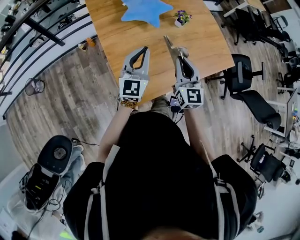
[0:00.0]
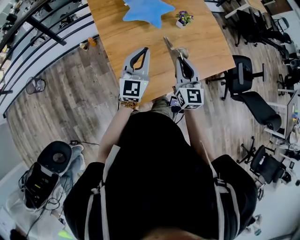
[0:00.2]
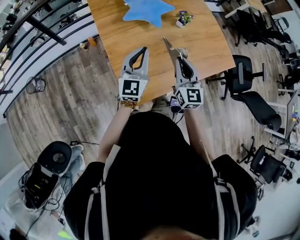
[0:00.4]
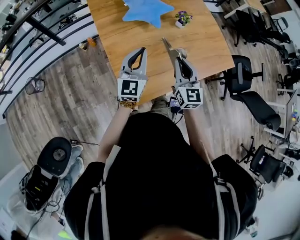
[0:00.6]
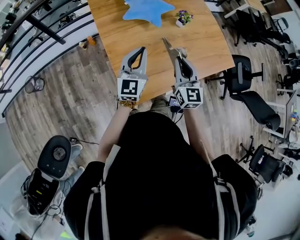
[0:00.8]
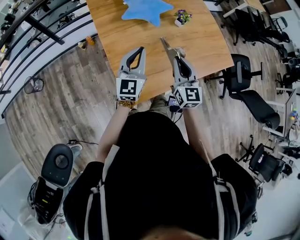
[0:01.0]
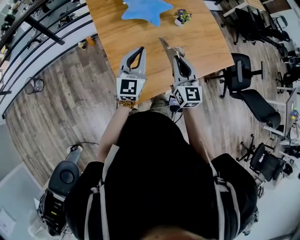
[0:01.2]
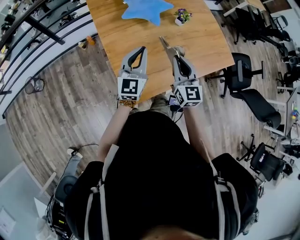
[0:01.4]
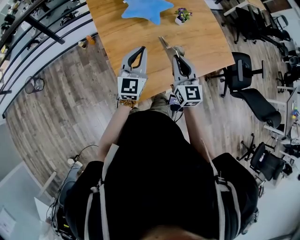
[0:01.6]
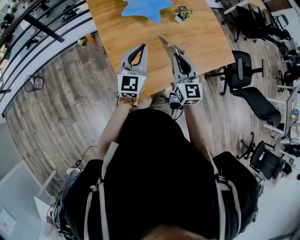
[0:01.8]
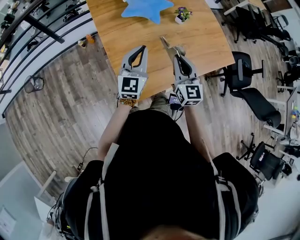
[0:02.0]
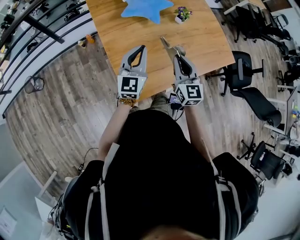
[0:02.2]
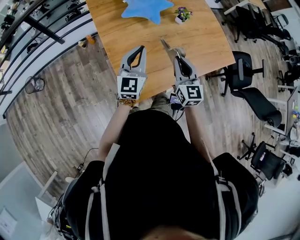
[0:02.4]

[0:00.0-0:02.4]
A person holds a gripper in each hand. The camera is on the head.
0:00.0 to 0:02.4: The grippers stay close to where they were, moving slightly.

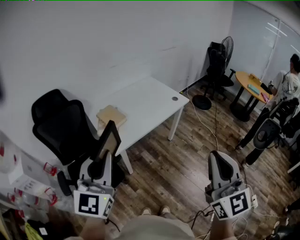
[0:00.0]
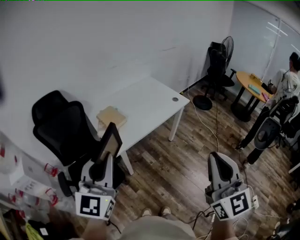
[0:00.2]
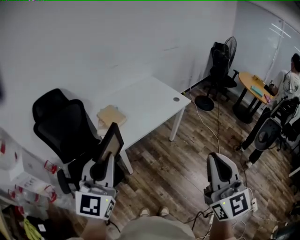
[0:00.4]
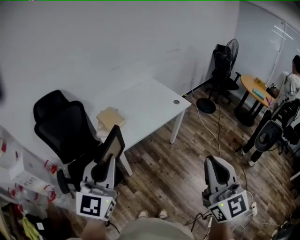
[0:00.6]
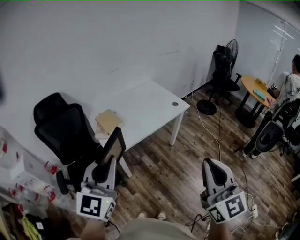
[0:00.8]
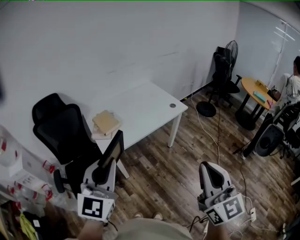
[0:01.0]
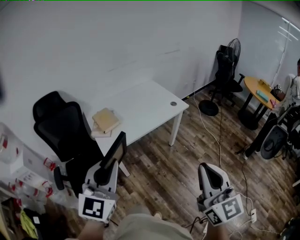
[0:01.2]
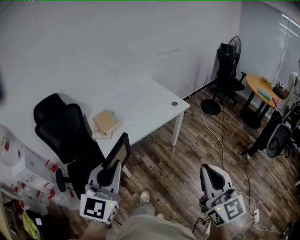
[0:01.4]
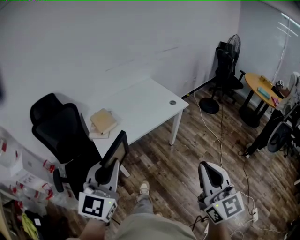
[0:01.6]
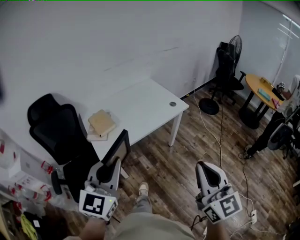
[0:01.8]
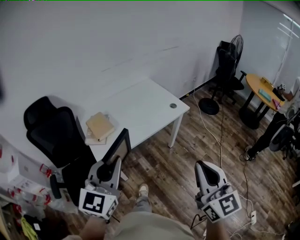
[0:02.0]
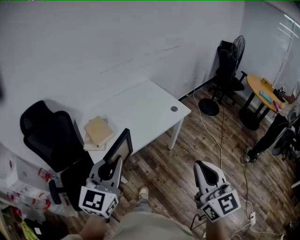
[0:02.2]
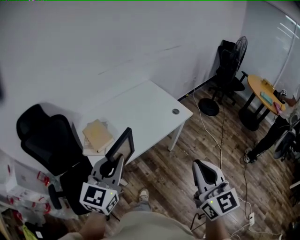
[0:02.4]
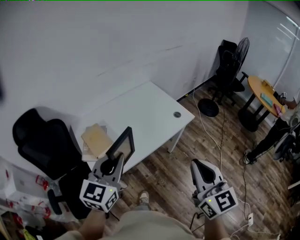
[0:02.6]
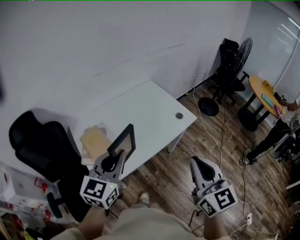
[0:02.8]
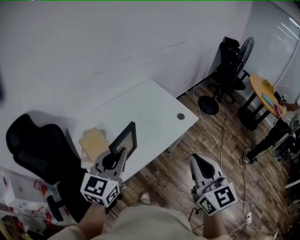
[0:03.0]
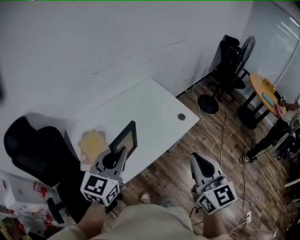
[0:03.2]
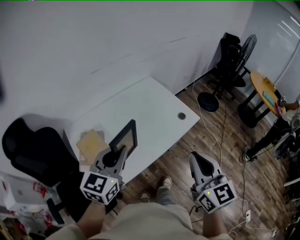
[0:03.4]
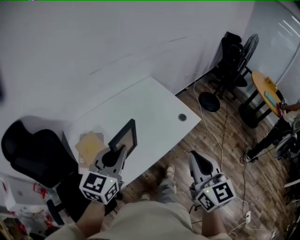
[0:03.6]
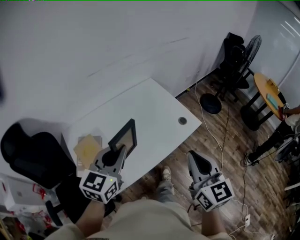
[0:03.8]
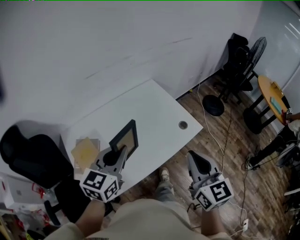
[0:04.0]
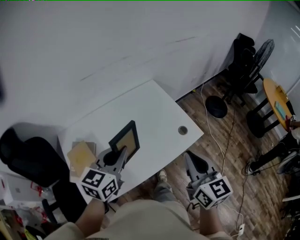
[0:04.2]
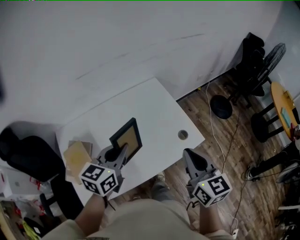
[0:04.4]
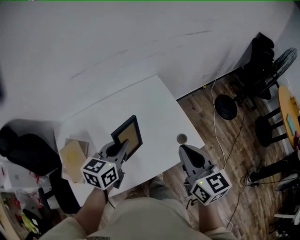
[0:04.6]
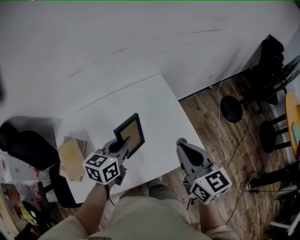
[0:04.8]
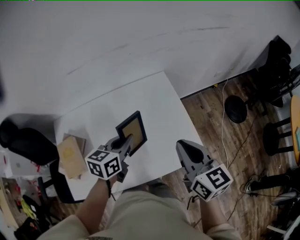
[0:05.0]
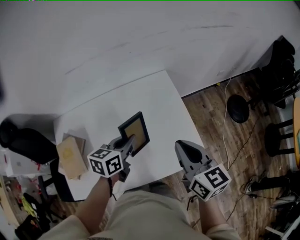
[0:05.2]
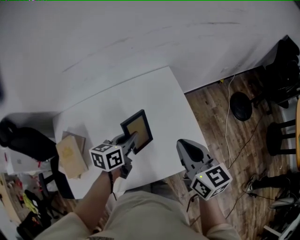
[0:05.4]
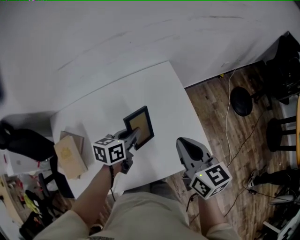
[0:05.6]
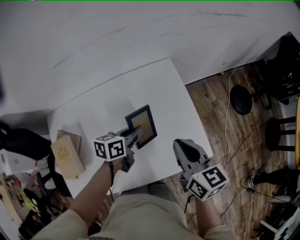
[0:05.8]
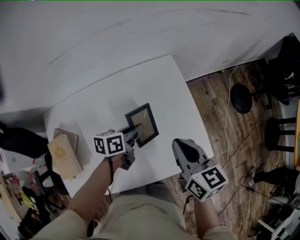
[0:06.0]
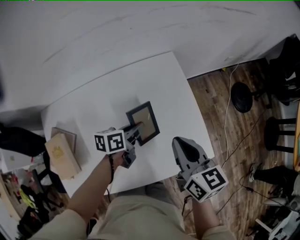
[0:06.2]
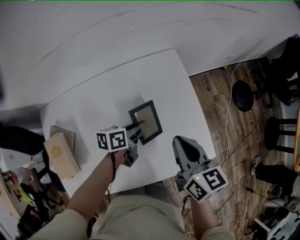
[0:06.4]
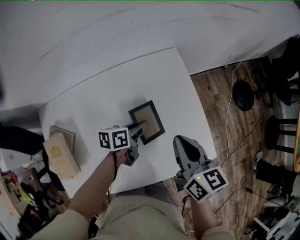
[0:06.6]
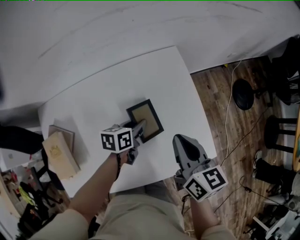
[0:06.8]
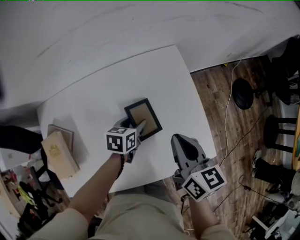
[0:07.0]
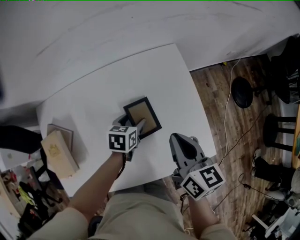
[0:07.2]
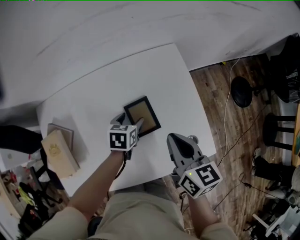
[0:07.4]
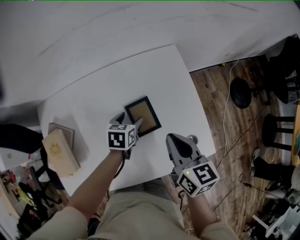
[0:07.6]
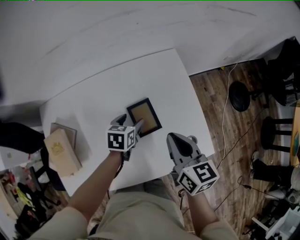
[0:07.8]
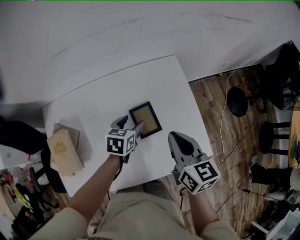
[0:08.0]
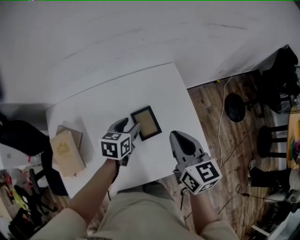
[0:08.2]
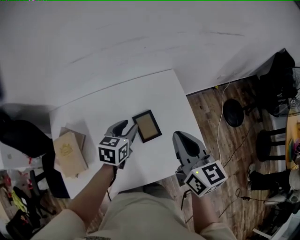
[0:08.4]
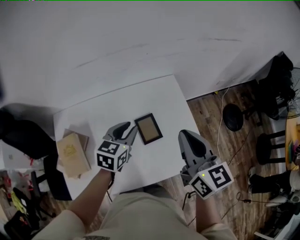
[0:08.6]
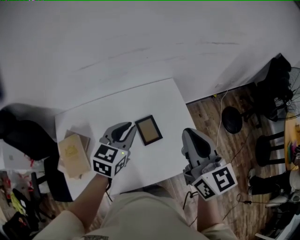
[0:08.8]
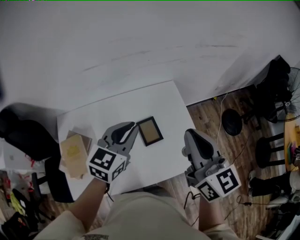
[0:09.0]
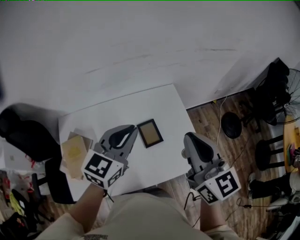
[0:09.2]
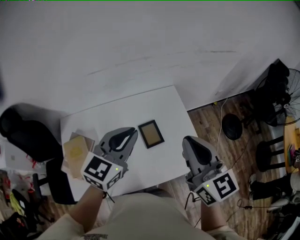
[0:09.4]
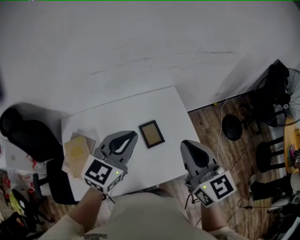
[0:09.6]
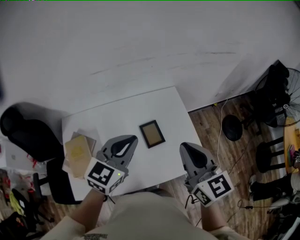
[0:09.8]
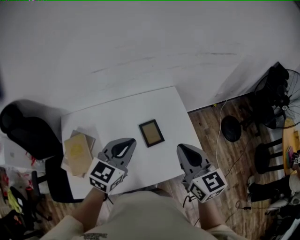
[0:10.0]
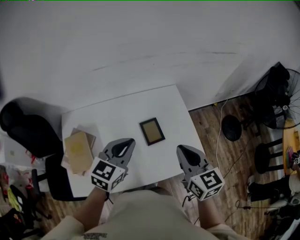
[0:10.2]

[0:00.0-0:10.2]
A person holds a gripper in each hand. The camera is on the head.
0:00.0 to 0:01.4: The right gripper heads to the right and downward, covering some 10 cm. The left gripper is displaced to the right by some 15 cm.
0:01.4 to 0:03.0: Both grippers move forward, some 35 cm.
0:03.0 to 0:04.4: Both grippers move forward, roughly 25 cm.
0:04.4 to 0:05.8: The right gripper travels forward and downward by approximately 20 cm, and turns by approximately 20 degrees. The left gripper is displaced downward and forward by roughly 25 cm, and swivels about 30 degrees.
0:05.8 to 0:07.2: The left gripper goes roughly 10 cm downward, rotates about 20 degrees, and opens its fingers, while the right gripper shifts by some 5 cm.
0:07.2 to 0:08.8: Both grippers move upward, some 25 cm. The left gripper swivels about 40 degrees, and closes, while the right gripper swivels approximately 30 degrees.
0:08.8 to 0:10.2: The right gripper is displaced downward and backward by about 10 cm, while the left gripper moves backward, approximately 10 cm, and moves approximately 10 cm upward and comes back.

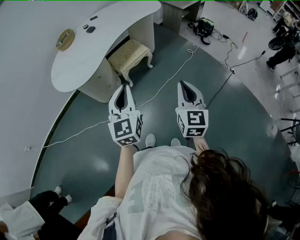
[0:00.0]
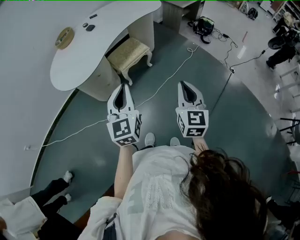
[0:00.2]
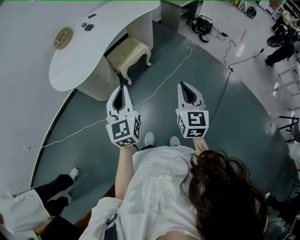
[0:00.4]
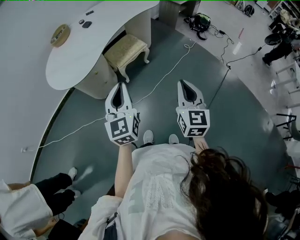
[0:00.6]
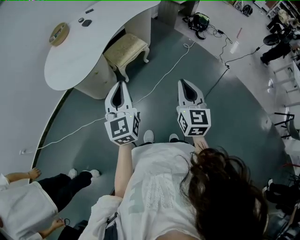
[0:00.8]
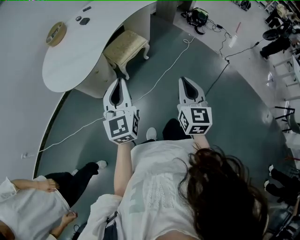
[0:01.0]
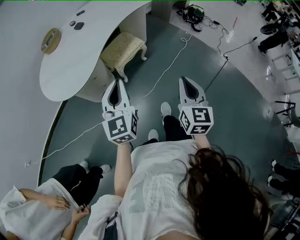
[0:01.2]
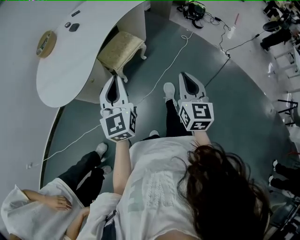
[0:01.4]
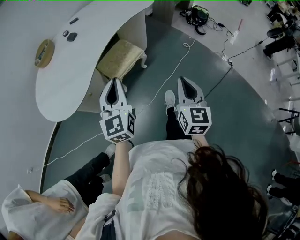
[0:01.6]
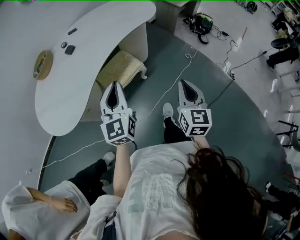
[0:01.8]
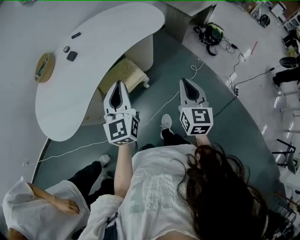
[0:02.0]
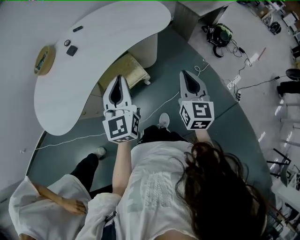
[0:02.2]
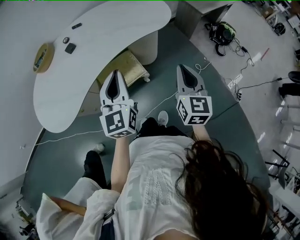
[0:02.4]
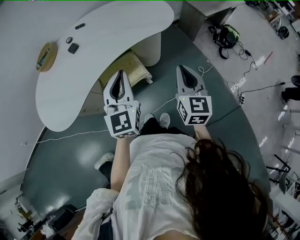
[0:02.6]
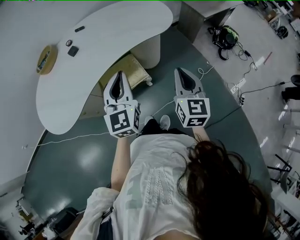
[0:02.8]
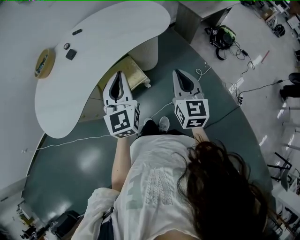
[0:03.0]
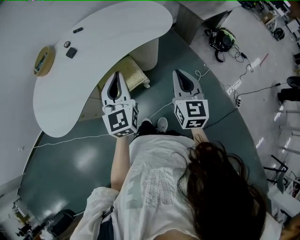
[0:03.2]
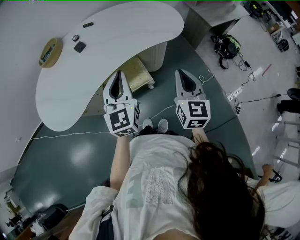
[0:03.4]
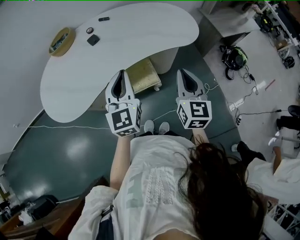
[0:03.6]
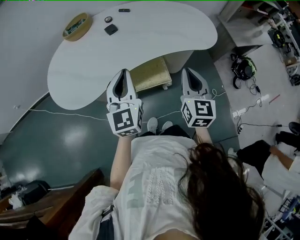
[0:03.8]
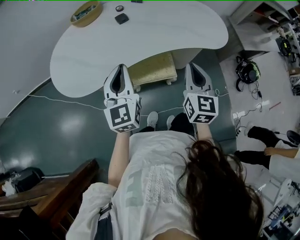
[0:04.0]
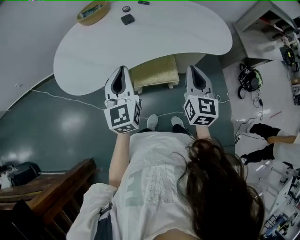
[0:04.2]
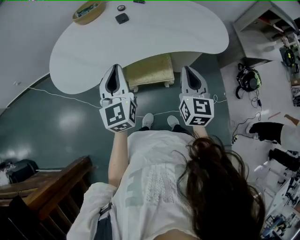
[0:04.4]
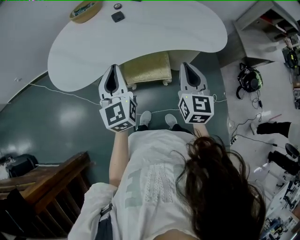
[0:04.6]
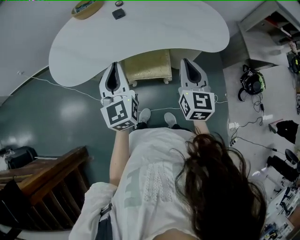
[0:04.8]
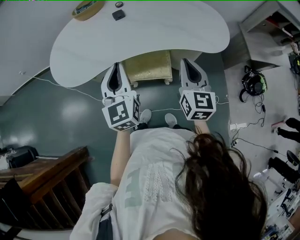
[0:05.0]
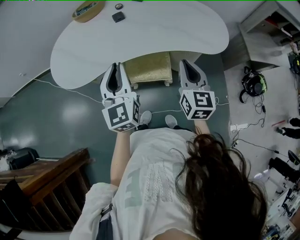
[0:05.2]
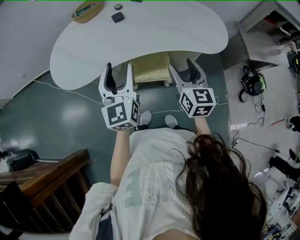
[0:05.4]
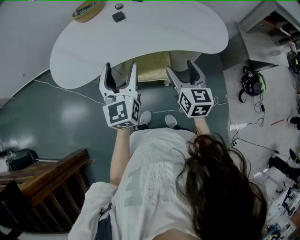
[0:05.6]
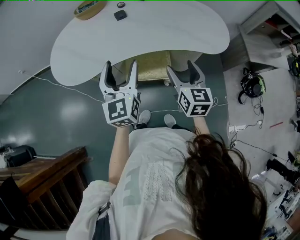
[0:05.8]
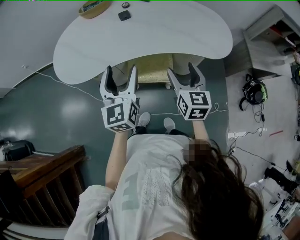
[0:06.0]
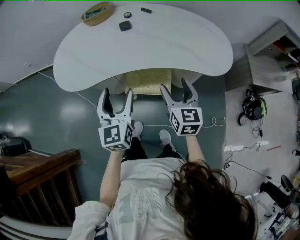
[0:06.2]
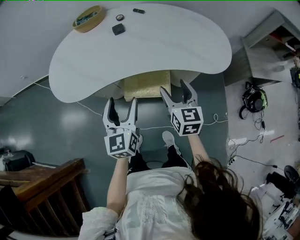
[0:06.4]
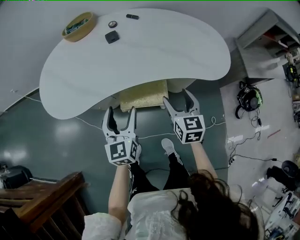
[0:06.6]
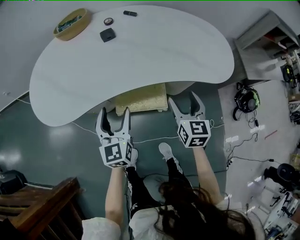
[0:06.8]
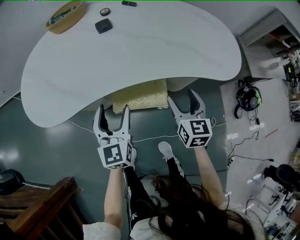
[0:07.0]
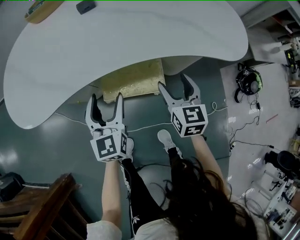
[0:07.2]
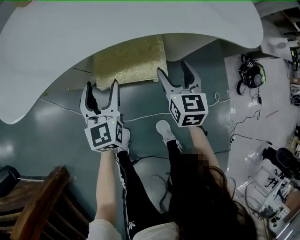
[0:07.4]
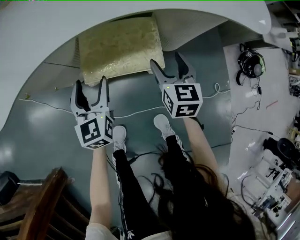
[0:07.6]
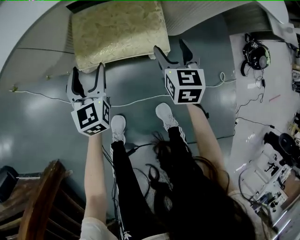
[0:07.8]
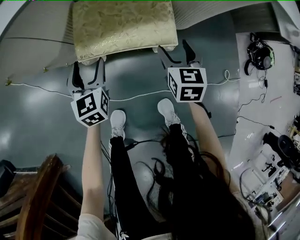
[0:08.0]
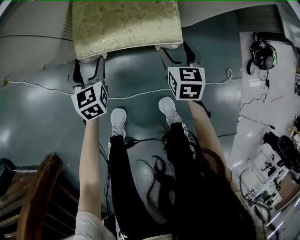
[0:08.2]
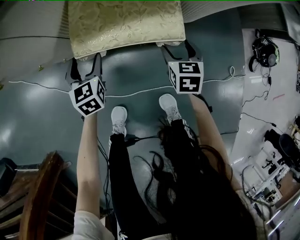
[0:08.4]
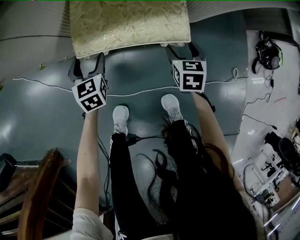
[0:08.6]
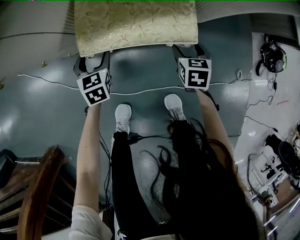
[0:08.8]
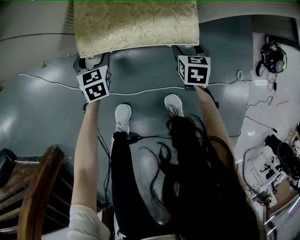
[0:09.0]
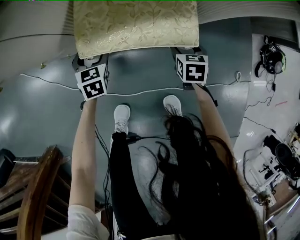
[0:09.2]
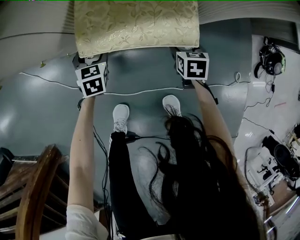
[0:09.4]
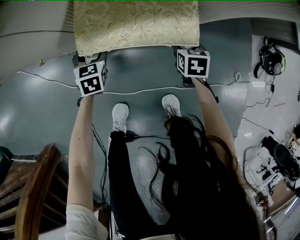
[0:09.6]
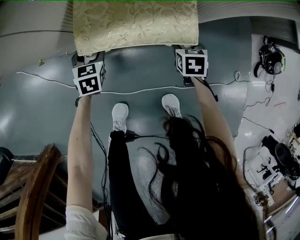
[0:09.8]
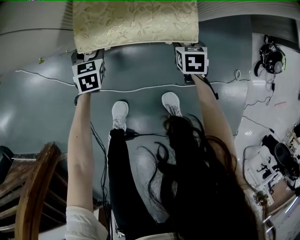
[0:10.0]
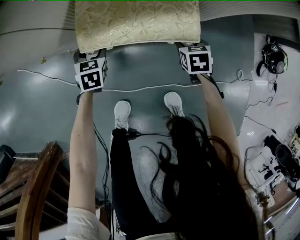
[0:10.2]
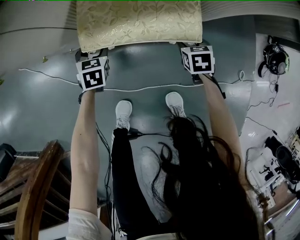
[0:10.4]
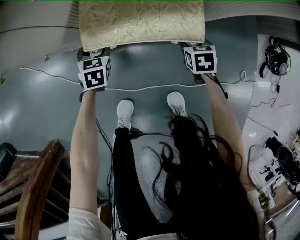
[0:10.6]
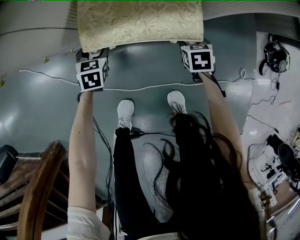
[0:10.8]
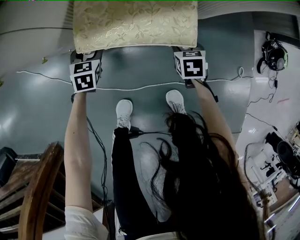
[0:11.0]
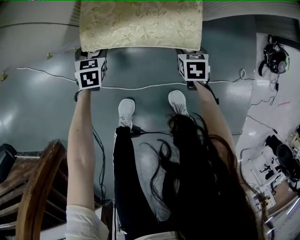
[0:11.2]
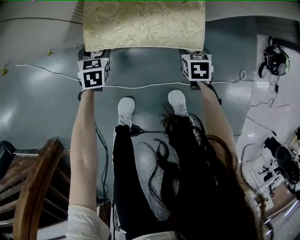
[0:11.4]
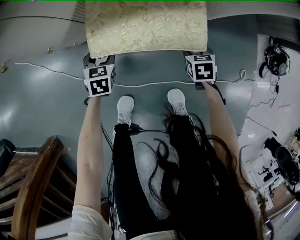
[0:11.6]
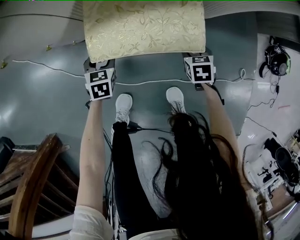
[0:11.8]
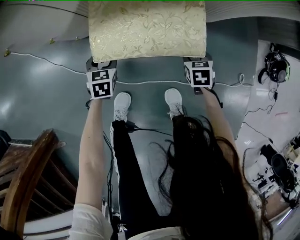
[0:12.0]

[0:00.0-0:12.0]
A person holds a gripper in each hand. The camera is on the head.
0:00.0 to 0:01.6: Both grippers travel together forward, some 20 cm.
0:01.6 to 0:03.0: The two grippers go some 35 cm forward and to the right.
0:03.0 to 0:04.4: The right gripper changes place by about 20 cm, and changes its angle by roughly 20 degrees; the left gripper shifts by some 20 cm, and swivels roughly 30 degrees.
0:04.4 to 0:06.0: The left gripper is displaced to the right by approximately 5 cm, and opens its fingers, while the right gripper moves some 5 cm, and opens its fingers.
0:06.0 to 0:07.6: The grippers both shift downward by roughly 40 cm.
0:07.6 to 0:09.0: The two grippers go approximately 25 cm downward. The right gripper changes its angle by some 30 degrees. The left gripper changes its angle by some 30 degrees.
0:09.0 to 0:10.4: The grippers make only small movements.
0:10.4 to 0:12.0: Both grippers travel together backward, roughly 10 cm.
